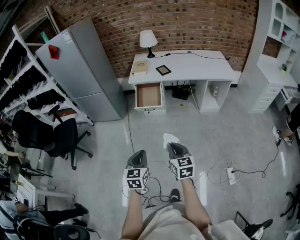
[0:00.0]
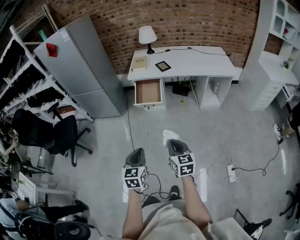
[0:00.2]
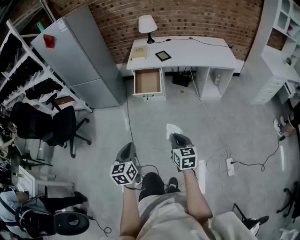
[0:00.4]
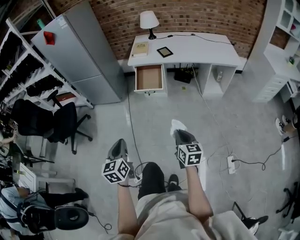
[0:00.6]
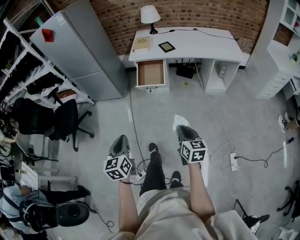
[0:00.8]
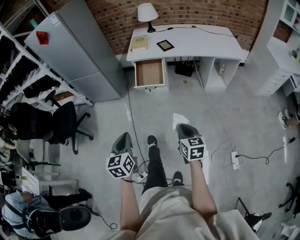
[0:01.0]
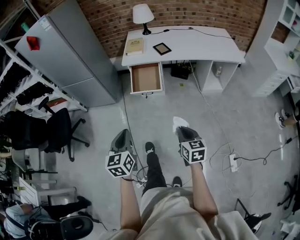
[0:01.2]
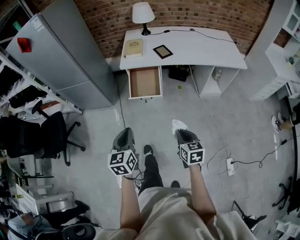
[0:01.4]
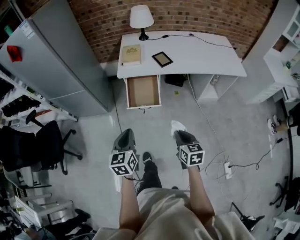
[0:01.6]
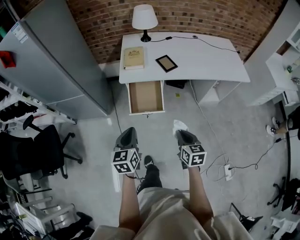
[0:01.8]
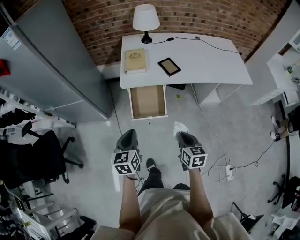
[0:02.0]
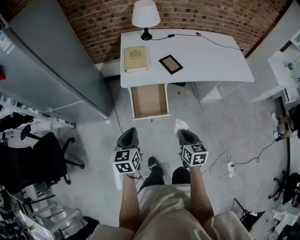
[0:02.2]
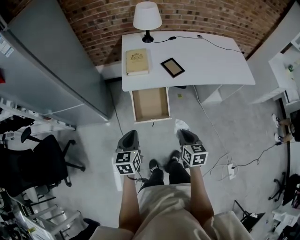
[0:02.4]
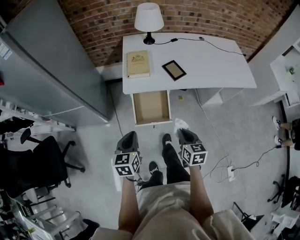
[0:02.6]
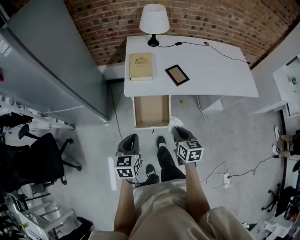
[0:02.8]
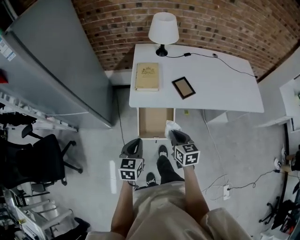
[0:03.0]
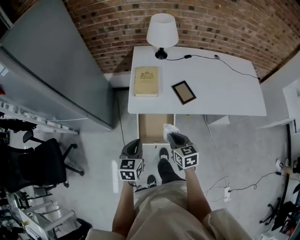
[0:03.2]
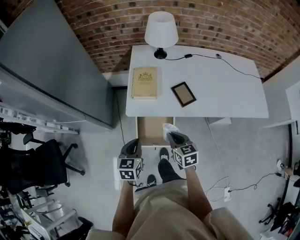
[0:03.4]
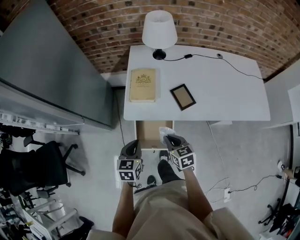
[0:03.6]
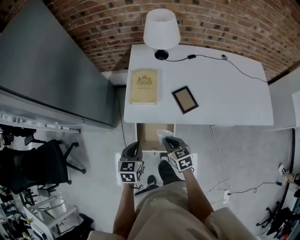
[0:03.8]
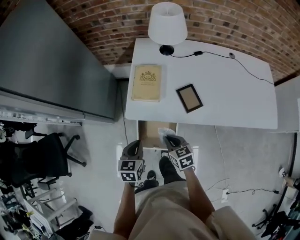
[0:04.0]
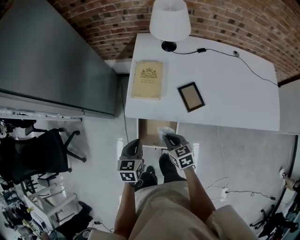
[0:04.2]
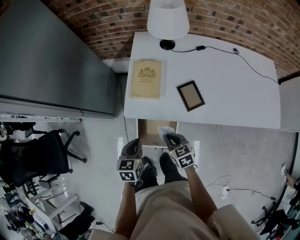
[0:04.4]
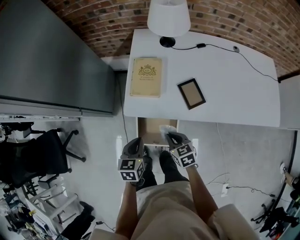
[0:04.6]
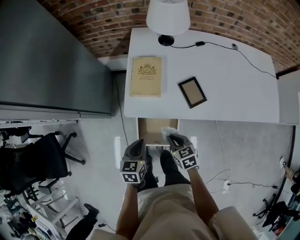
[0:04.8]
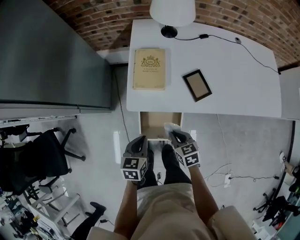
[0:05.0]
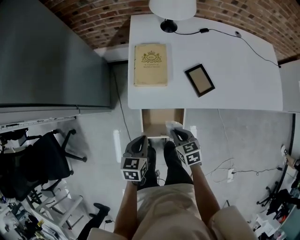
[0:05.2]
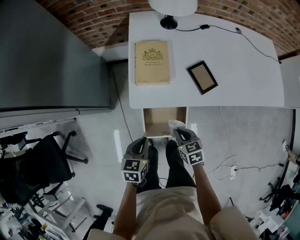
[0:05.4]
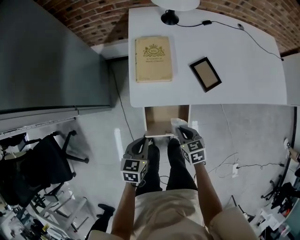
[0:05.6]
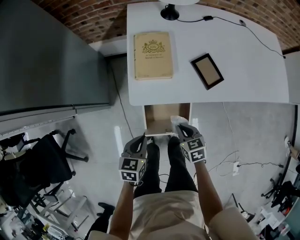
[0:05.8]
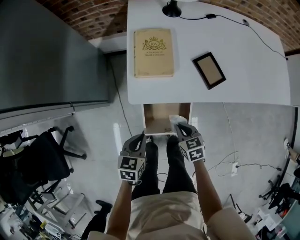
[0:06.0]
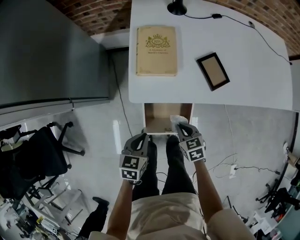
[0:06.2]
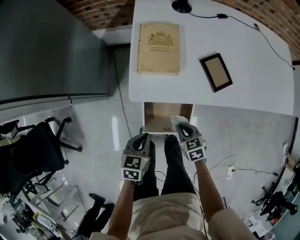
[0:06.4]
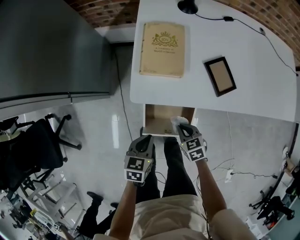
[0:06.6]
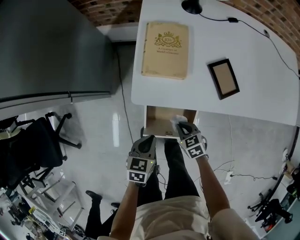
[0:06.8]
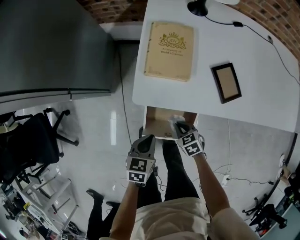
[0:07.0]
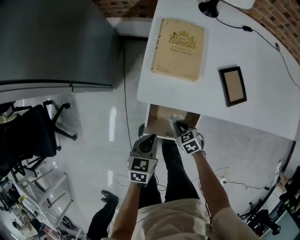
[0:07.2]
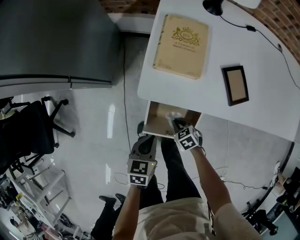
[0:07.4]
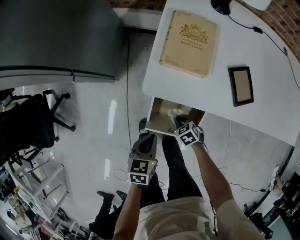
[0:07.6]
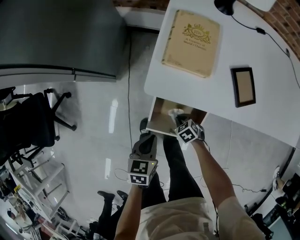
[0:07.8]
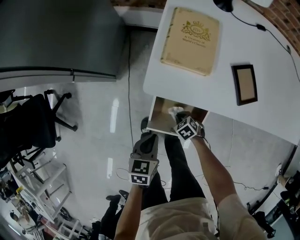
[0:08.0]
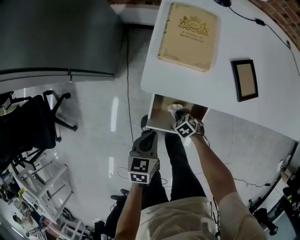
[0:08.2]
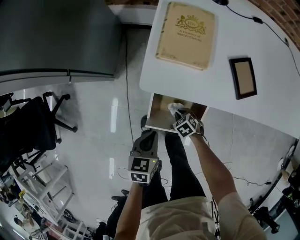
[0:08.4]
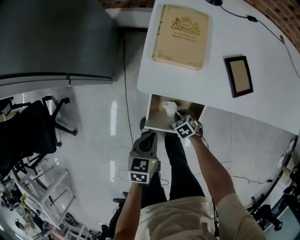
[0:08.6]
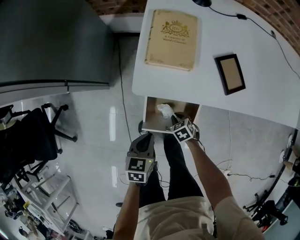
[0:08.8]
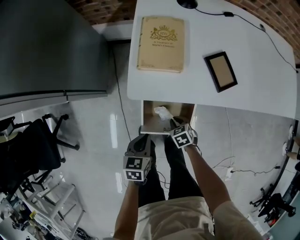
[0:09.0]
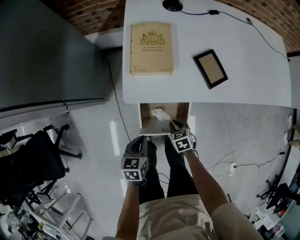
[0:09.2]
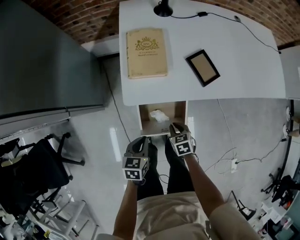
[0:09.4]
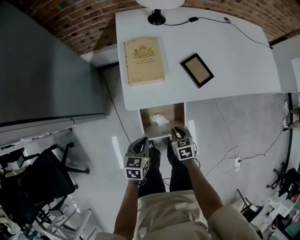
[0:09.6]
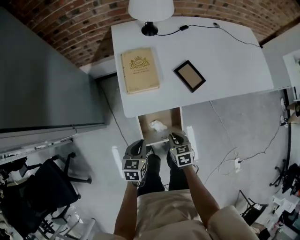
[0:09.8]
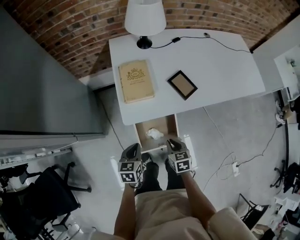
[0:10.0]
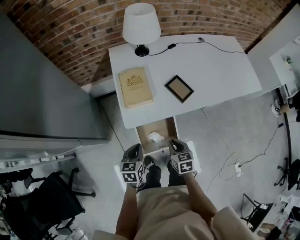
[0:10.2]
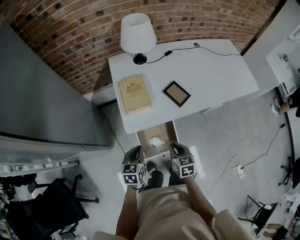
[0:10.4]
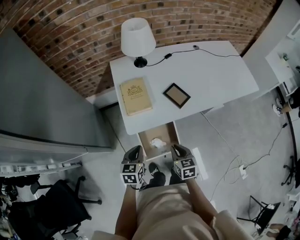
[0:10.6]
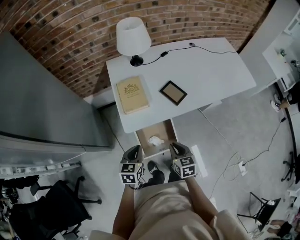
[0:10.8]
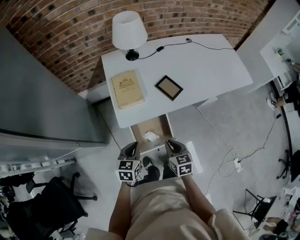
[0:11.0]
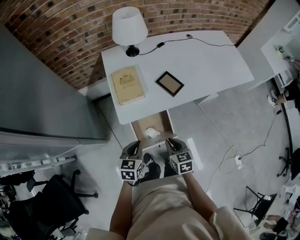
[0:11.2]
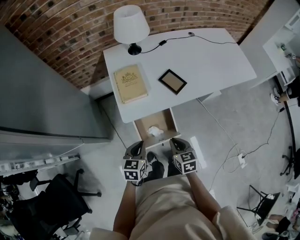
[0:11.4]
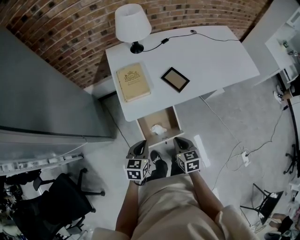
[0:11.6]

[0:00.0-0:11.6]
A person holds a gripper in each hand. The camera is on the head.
0:00.0 to 0:01.4: The left gripper is displaced forward by about 25 cm; the right gripper goes roughly 20 cm forward and downward.
0:01.4 to 0:02.8: Both grippers travel together forward, about 35 cm.
0:02.8 to 0:04.4: The two grippers go about 20 cm forward and downward. The right gripper swivels roughly 30 degrees.
0:04.4 to 0:05.8: The left gripper travels downward and to the left by about 10 cm. Meanwhile the right gripper shifts roughly 10 cm downward.
0:05.8 to 0:07.2: The left gripper goes roughly 5 cm downward; the right gripper travels downward by approximately 15 cm, and turns by roughly 30 degrees.
0:07.2 to 0:08.8: The right gripper heads downward, covering some 5 cm.
0:08.8 to 0:10.2: The left gripper is displaced upward by roughly 15 cm, while the right gripper shifts approximately 30 cm upward, and changes its angle by about 50 degrees.
0:10.2 to 0:11.6: The right gripper shifts approximately 5 cm backward, while the left gripper ends up some 5 cm from where it was.

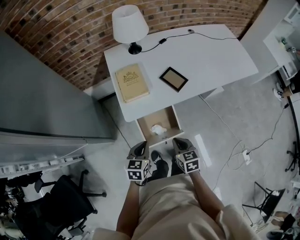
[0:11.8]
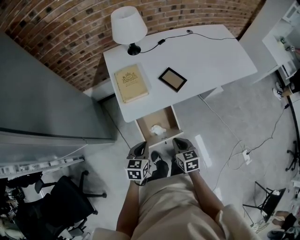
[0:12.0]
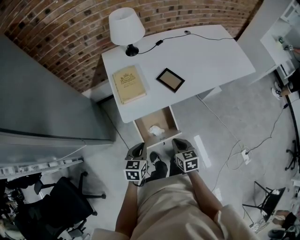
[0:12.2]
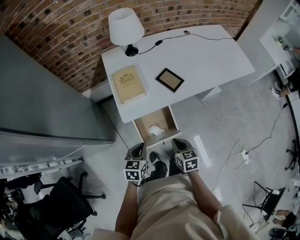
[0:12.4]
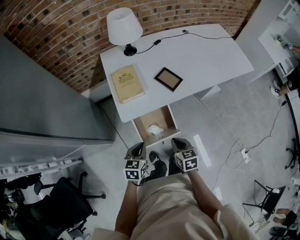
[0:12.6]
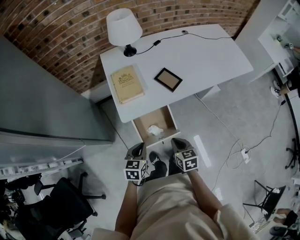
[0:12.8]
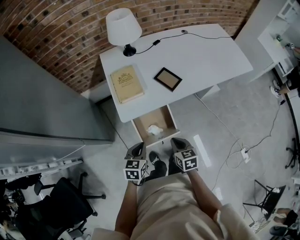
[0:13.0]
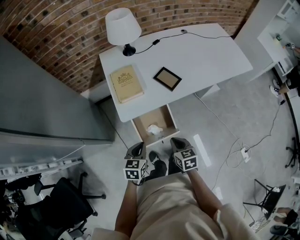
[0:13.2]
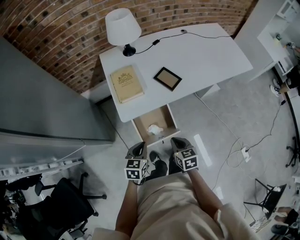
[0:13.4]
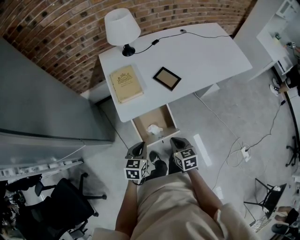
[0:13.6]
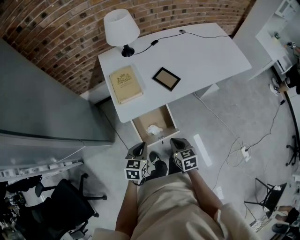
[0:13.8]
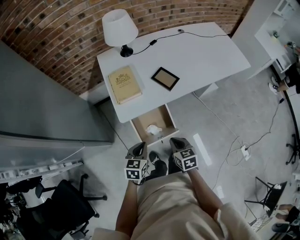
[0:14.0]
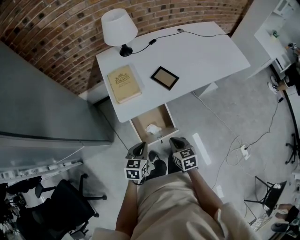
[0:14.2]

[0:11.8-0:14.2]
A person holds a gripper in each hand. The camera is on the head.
0:11.8 to 0:14.2: The grippers move only a little.

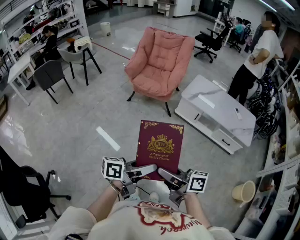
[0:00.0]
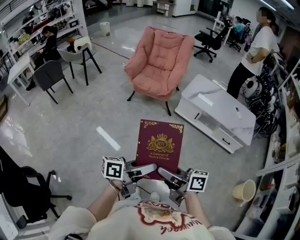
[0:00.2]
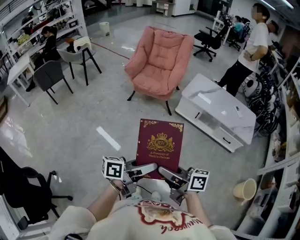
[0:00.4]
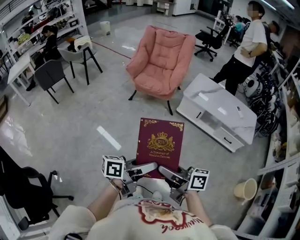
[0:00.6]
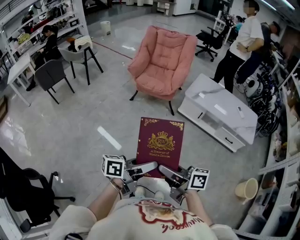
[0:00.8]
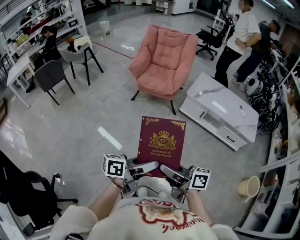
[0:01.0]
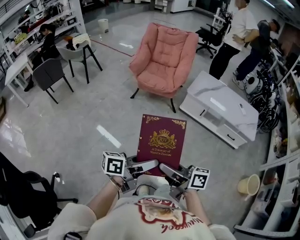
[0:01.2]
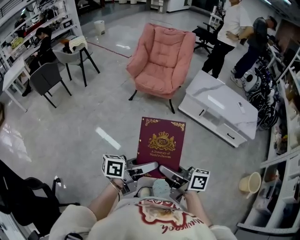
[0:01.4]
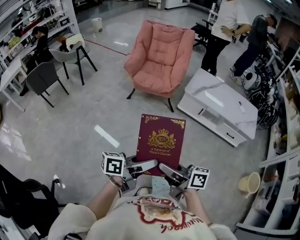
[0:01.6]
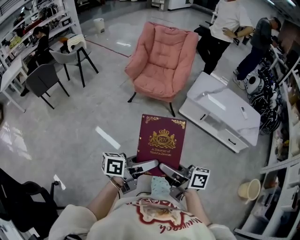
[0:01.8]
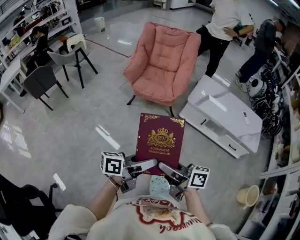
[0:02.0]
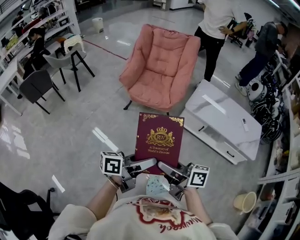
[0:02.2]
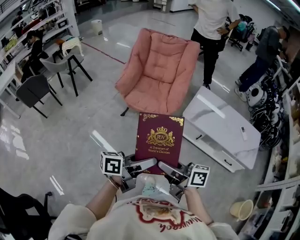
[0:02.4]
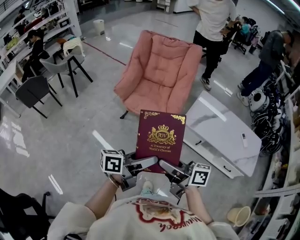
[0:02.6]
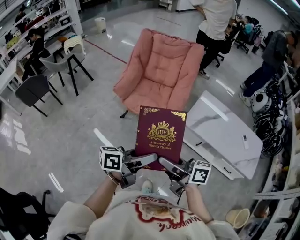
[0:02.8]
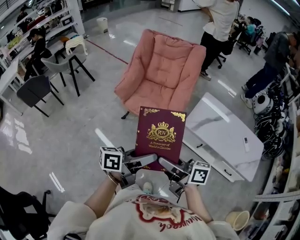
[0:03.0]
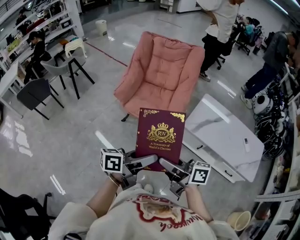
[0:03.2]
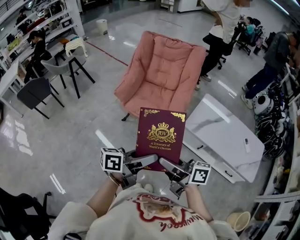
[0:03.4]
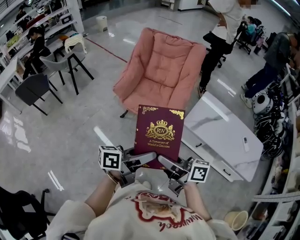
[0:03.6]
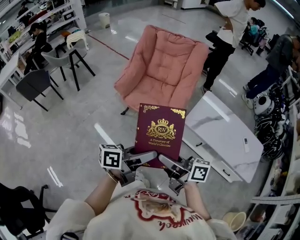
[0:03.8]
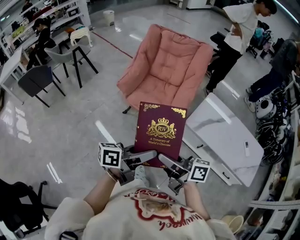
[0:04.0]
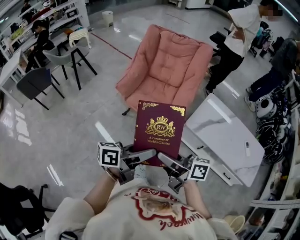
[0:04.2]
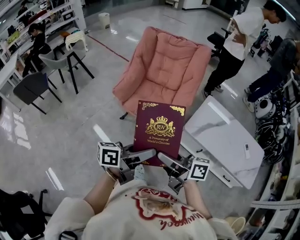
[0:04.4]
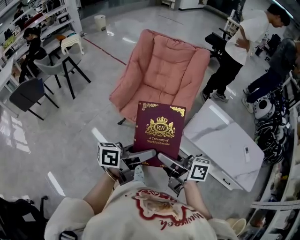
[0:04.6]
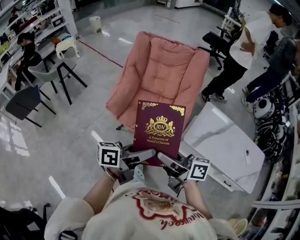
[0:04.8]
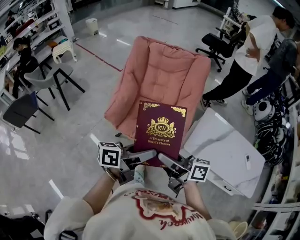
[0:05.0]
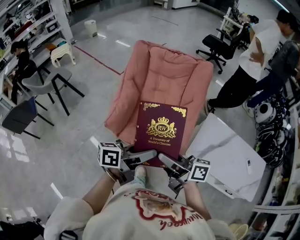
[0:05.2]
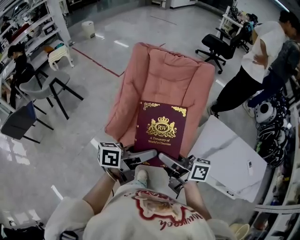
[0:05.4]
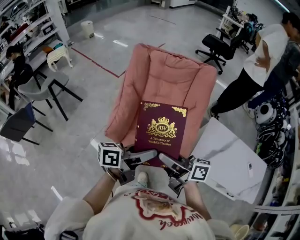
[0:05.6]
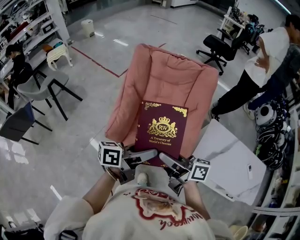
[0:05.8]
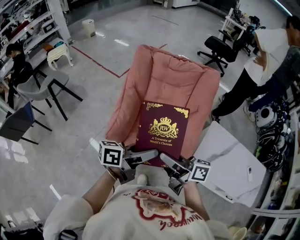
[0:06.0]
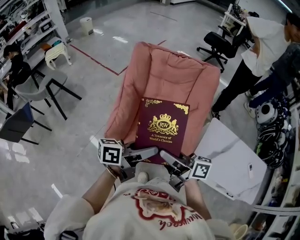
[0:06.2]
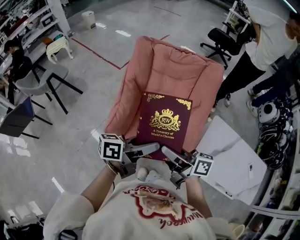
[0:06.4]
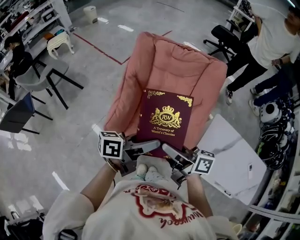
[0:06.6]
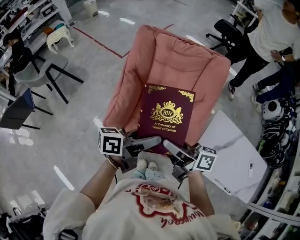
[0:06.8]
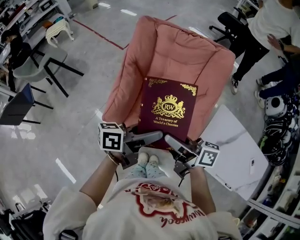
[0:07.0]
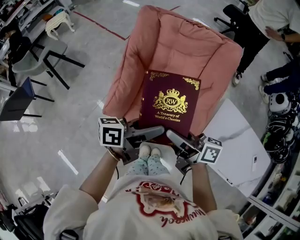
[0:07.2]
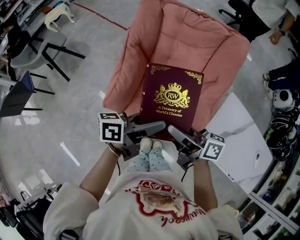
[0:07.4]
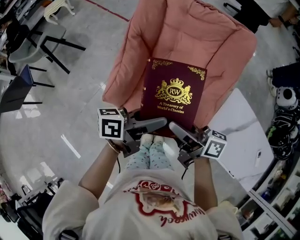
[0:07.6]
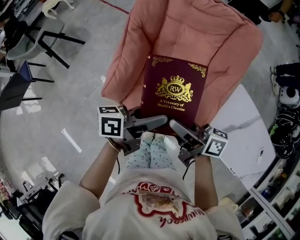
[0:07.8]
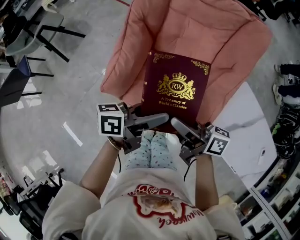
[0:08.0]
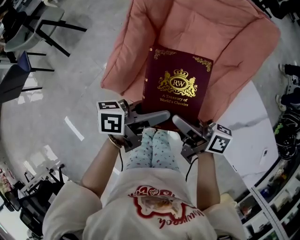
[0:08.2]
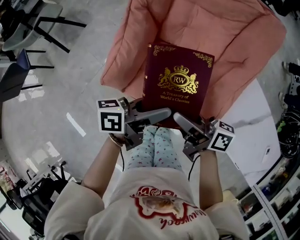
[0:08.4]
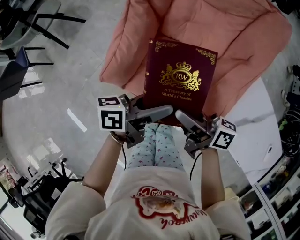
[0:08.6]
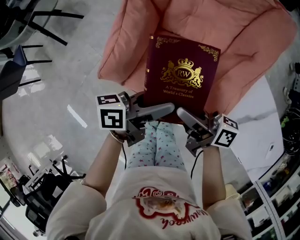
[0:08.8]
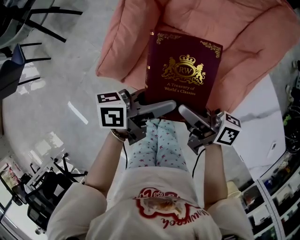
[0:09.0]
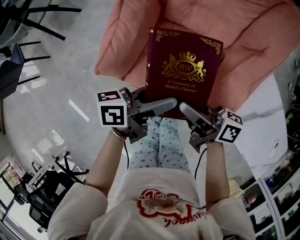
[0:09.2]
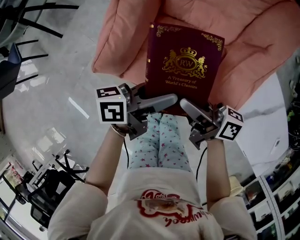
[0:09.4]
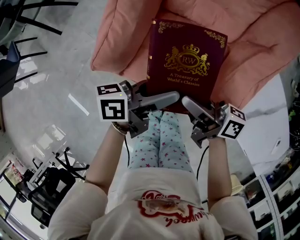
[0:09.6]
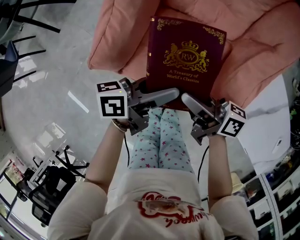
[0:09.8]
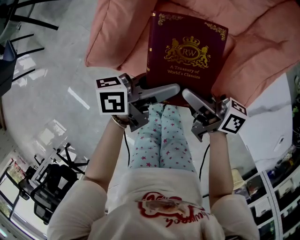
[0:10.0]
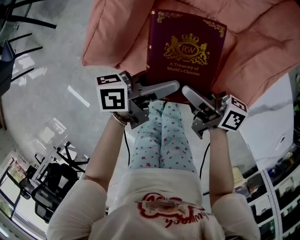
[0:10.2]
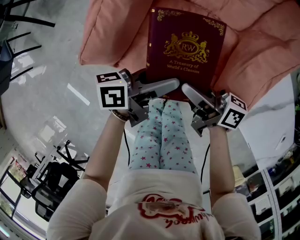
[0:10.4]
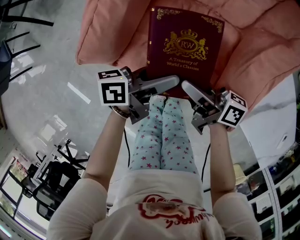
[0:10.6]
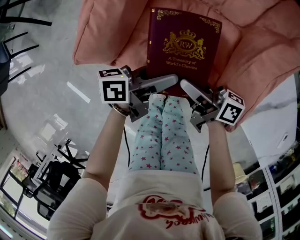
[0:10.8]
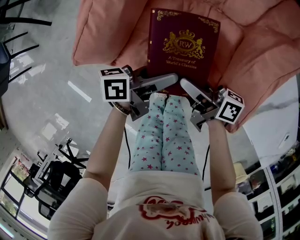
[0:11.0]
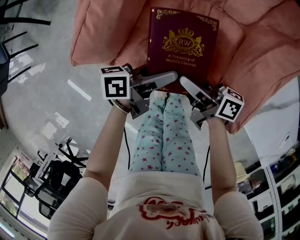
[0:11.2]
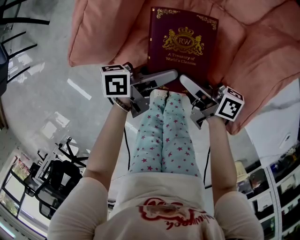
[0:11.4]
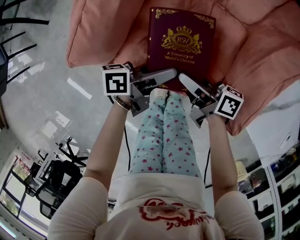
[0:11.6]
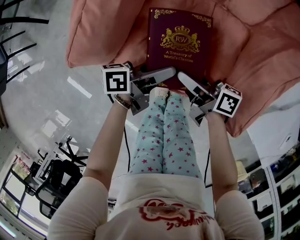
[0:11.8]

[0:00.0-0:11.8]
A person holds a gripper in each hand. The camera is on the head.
0:00.0 to 0:01.4: Both grippers move to the left, roughly 10 cm.
0:01.4 to 0:03.0: The pair of grippers is taken forward, some 40 cm.
0:03.0 to 0:04.4: Both grippers travel together forward, approximately 5 cm.
0:04.4 to 0:06.0: Both grippers move forward, some 35 cm.
0:06.0 to 0:07.4: The grippers both shift forward and downward by approximately 10 cm.
0:07.4 to 0:08.8: Both grippers travel together downward, some 15 cm.
0:08.8 to 0:10.4: Both grippers travel together downward, roughly 10 cm.
0:10.4 to 0:11.8: Both grippers move downward, roughly 10 cm.
